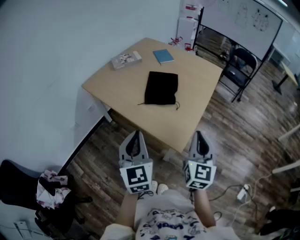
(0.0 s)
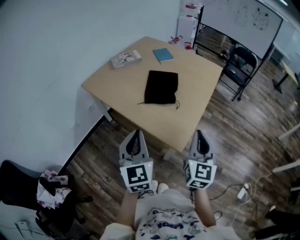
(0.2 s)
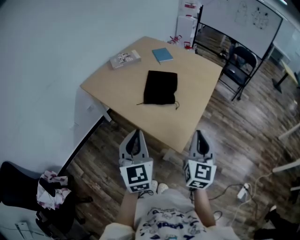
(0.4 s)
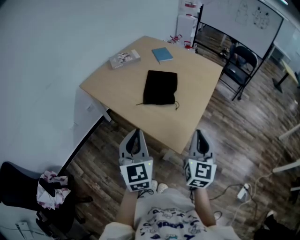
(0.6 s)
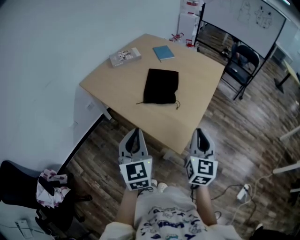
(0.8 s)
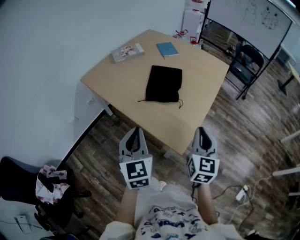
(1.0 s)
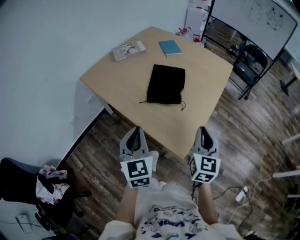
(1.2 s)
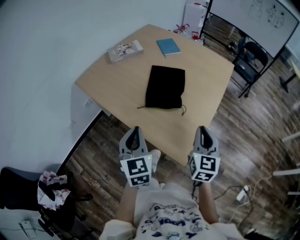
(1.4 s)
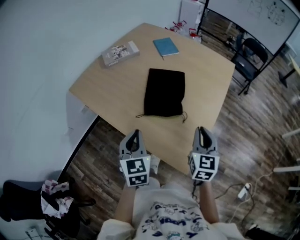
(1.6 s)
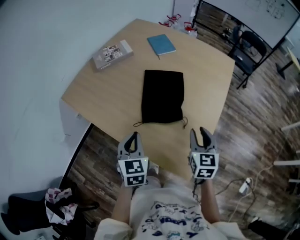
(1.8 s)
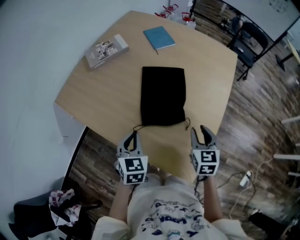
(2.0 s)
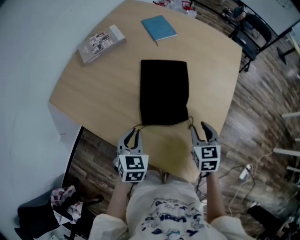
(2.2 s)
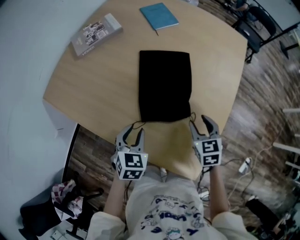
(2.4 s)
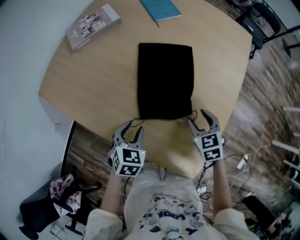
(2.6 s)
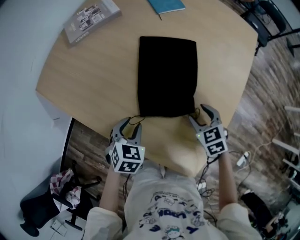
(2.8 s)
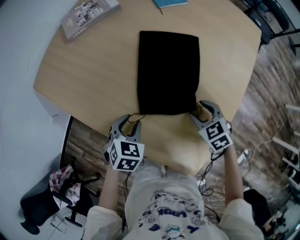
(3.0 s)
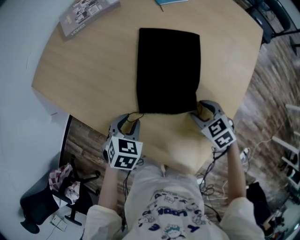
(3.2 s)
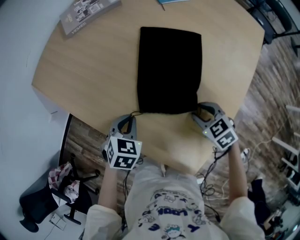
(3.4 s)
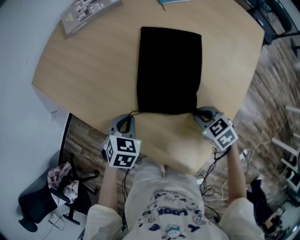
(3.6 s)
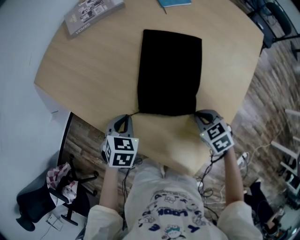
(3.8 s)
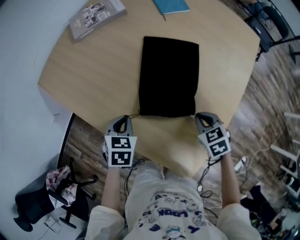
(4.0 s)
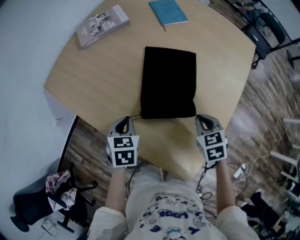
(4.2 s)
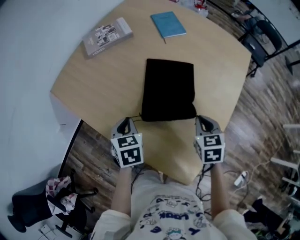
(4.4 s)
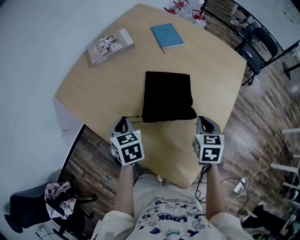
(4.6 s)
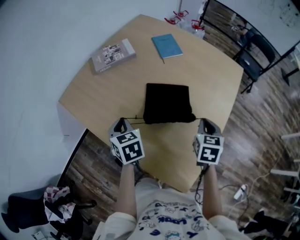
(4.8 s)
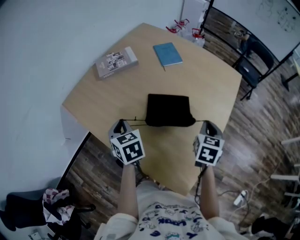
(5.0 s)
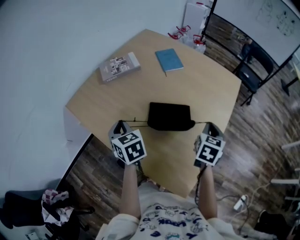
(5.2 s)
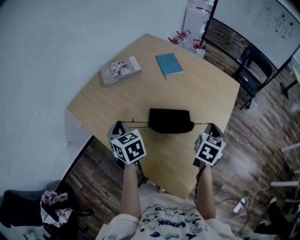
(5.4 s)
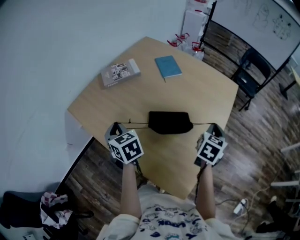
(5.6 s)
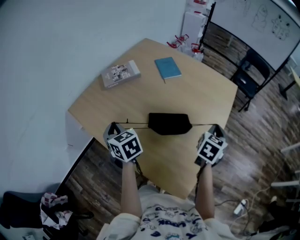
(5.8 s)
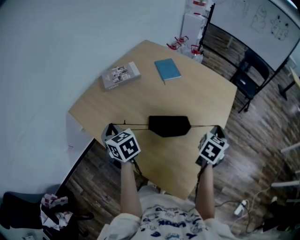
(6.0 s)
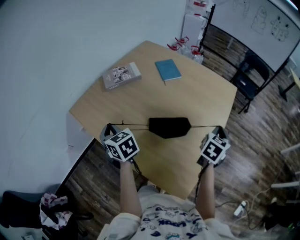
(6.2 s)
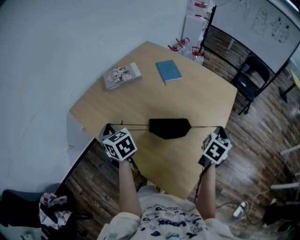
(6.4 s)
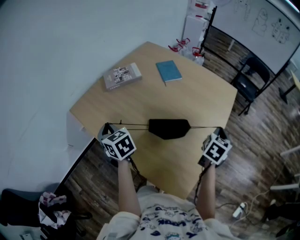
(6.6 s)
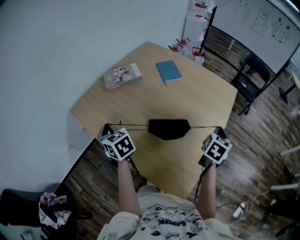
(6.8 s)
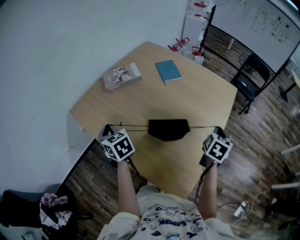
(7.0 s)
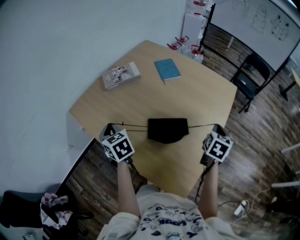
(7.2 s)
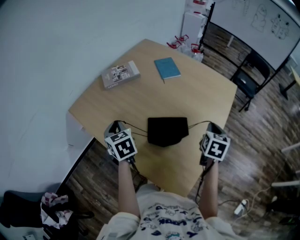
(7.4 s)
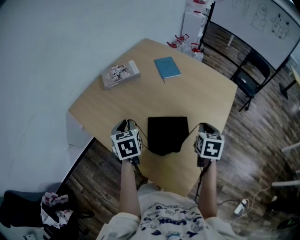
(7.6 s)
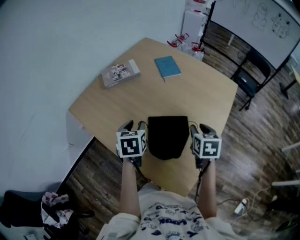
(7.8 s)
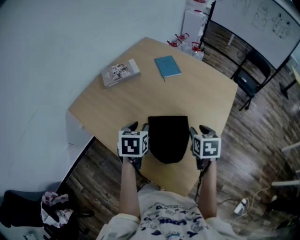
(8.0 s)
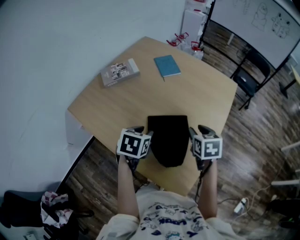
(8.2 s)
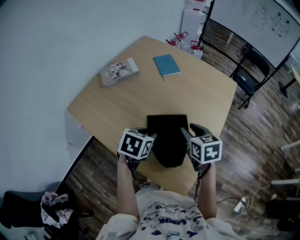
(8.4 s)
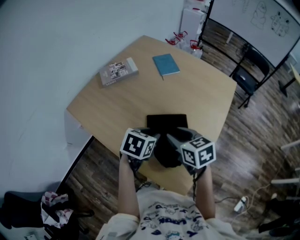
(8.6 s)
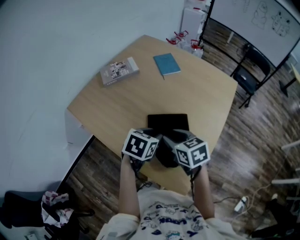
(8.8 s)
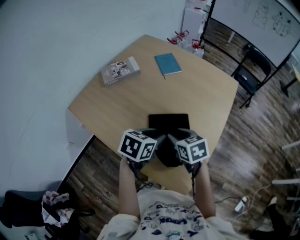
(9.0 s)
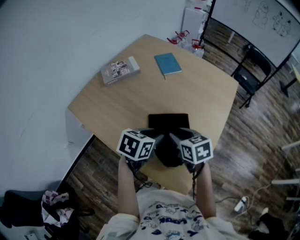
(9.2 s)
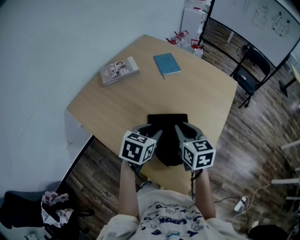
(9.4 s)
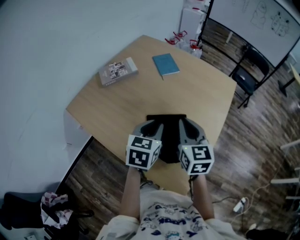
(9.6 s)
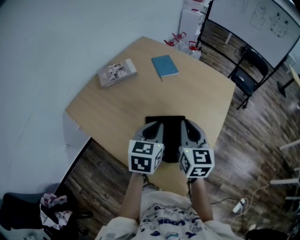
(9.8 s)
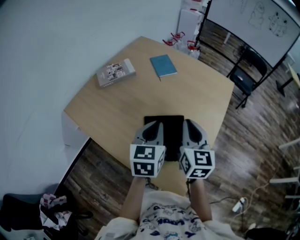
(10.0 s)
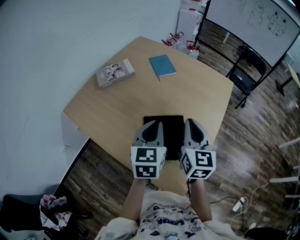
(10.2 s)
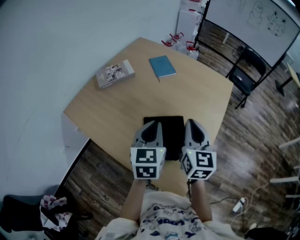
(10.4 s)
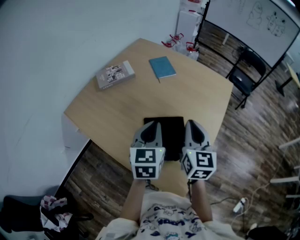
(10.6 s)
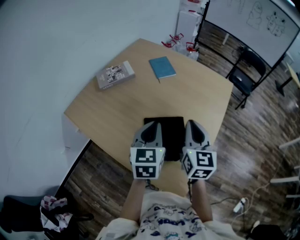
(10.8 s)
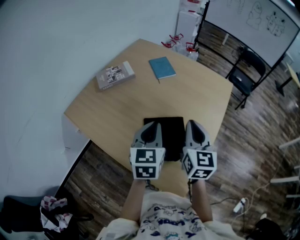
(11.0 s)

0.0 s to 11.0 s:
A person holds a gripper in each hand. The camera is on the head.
0.0 to 1.6 s: The grippers both shift forward and downward by some 20 cm.
1.6 to 3.2 s: The grippers both shift downward and forward by some 20 cm. The left gripper points its fingers approximately 40 degrees further downward, and opens its fingers. Meanwhile the right gripper points its fingers roughly 40 degrees further downward, and opens up.
3.2 to 4.8 s: The right gripper goes approximately 15 cm upward, rotates approximately 50 degrees, and closes. The left gripper shifts roughly 15 cm upward and forward, turns by approximately 40 degrees, and closes its fingers.
4.8 to 6.2 s: The right gripper heads to the right and upward, covering some 10 cm, and rotates roughly 30 degrees; the left gripper moves to the left and upward, roughly 10 cm, and swivels some 20 degrees.
6.2 to 7.8 s: The right gripper travels to the left and downward by about 10 cm, changes its angle by roughly 40 degrees, and opens up. The left gripper shifts approximately 15 cm to the right, turns by roughly 40 degrees, and opens.
7.8 to 9.4 s: The left gripper heads to the right, covering some 10 cm, and rotates about 30 degrees. Meanwhile the right gripper shifts some 10 cm to the left, and turns by approximately 20 degrees.
9.4 to 11.0 s: The two grippers go approximately 5 cm upward. The right gripper swivels some 20 degrees; the left gripper turns by approximately 30 degrees, and closes.

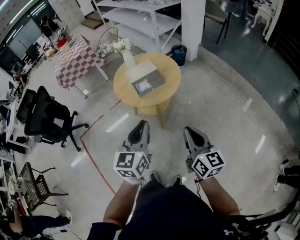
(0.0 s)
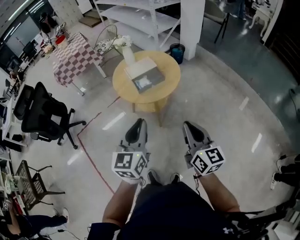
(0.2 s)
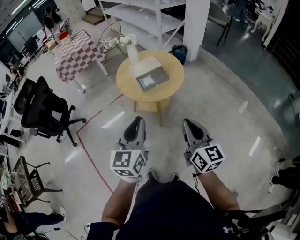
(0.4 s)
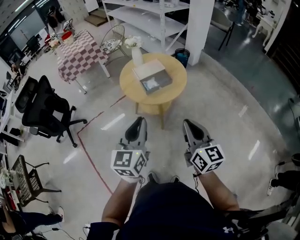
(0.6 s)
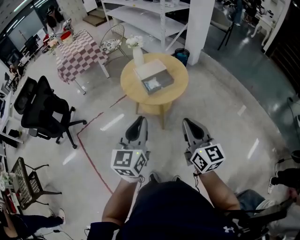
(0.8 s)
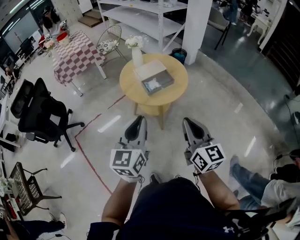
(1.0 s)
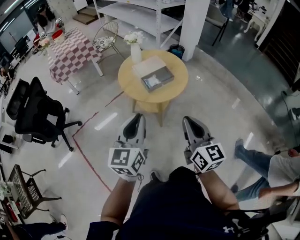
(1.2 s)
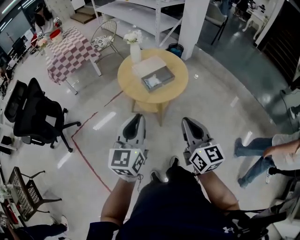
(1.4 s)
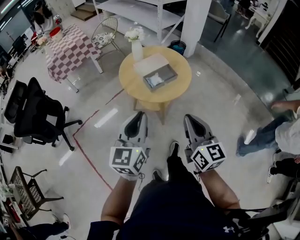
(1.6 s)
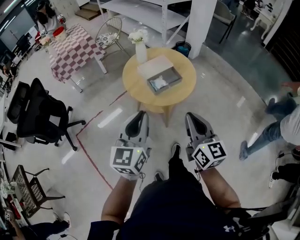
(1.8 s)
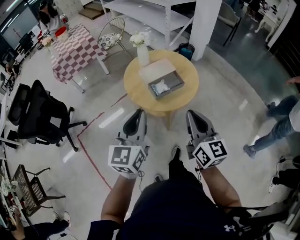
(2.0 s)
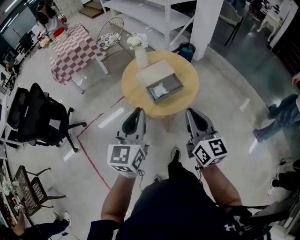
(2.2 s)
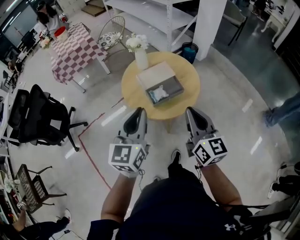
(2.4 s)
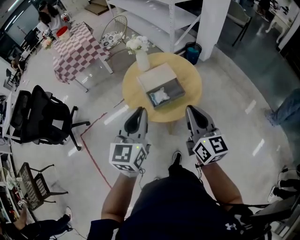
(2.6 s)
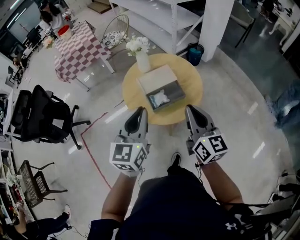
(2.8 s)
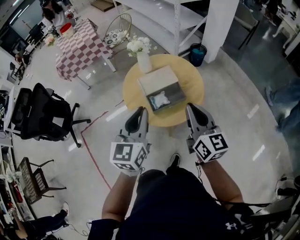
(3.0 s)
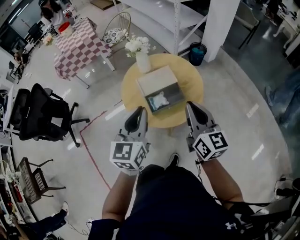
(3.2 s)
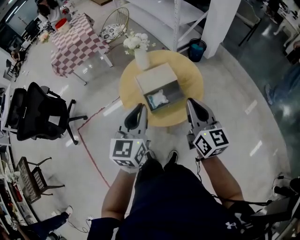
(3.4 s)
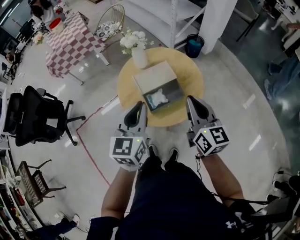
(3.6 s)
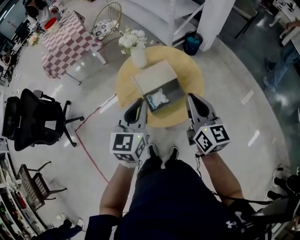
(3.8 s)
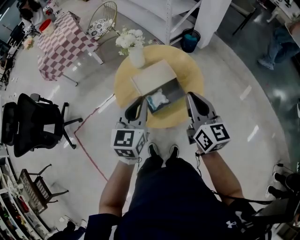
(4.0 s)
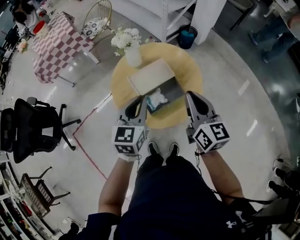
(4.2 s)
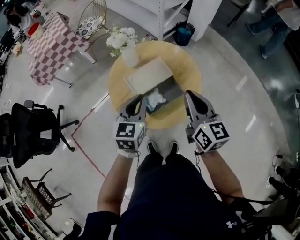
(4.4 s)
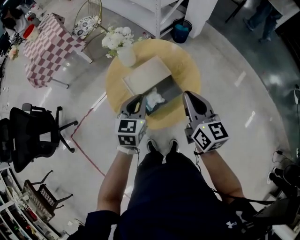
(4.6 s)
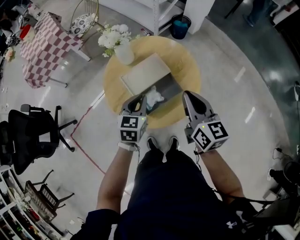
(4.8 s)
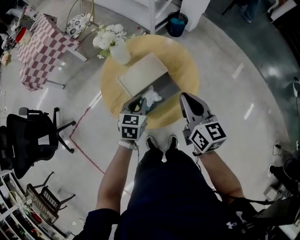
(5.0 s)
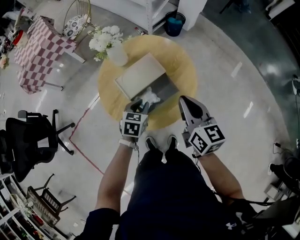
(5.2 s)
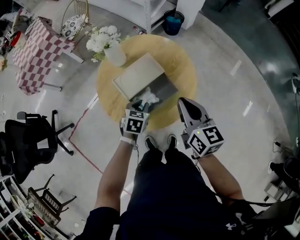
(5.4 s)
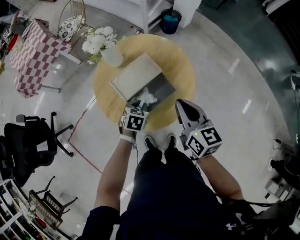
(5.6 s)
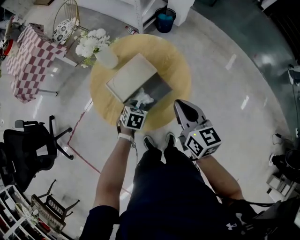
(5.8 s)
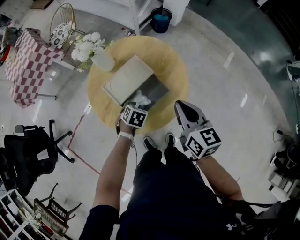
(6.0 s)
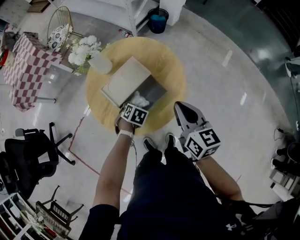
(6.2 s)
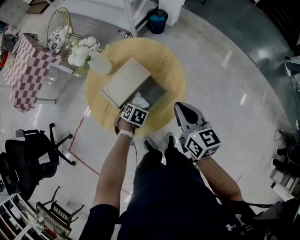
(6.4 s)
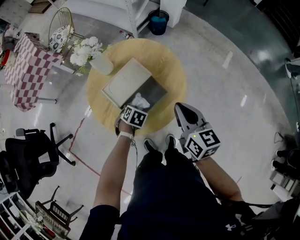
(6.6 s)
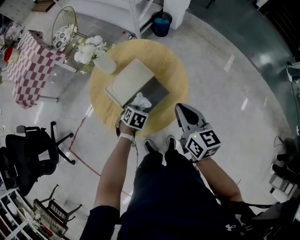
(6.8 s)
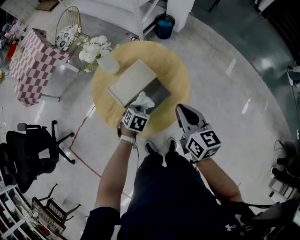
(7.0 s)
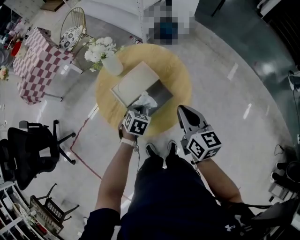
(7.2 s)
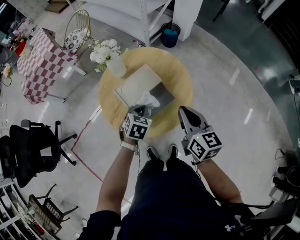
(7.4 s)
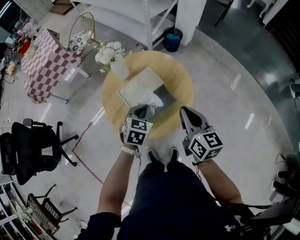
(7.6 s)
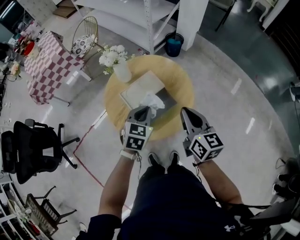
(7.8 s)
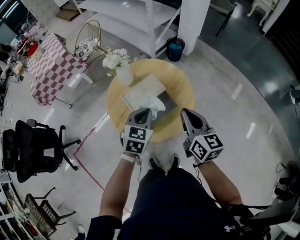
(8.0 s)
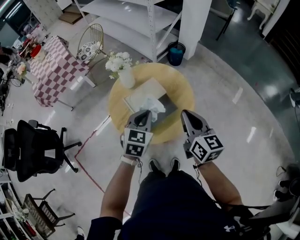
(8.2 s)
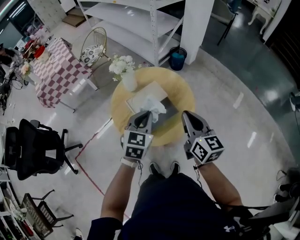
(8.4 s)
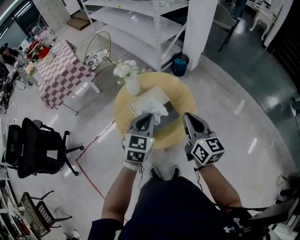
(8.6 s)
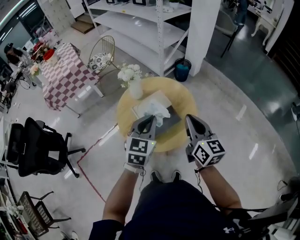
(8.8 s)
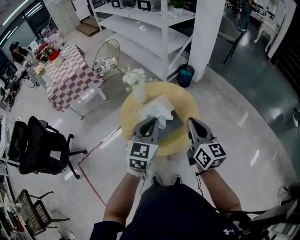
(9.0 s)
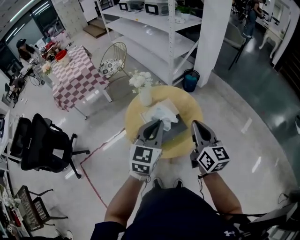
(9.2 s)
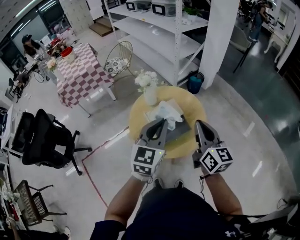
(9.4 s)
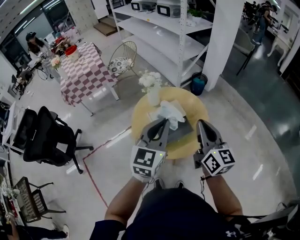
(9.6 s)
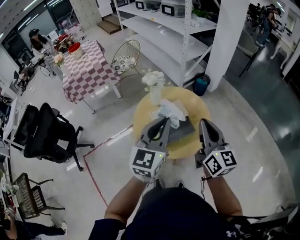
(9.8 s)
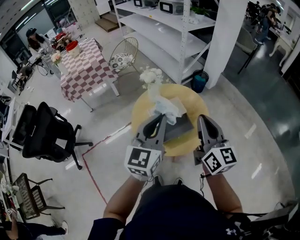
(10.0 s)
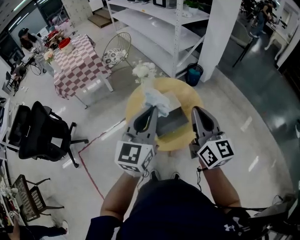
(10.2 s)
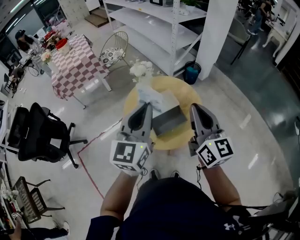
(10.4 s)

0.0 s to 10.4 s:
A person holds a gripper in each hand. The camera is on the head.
0.0 to 1.4 s: The grippers both shift to the left by approximately 15 cm.
1.4 to 3.0 s: The two grippers go about 25 cm forward.
3.0 to 4.4 s: The left gripper moves forward and downward, approximately 20 cm. Meanwhile the right gripper travels forward by roughly 15 cm.
4.4 to 6.0 s: The right gripper goes approximately 10 cm downward. The left gripper shifts approximately 25 cm downward, and angles its fingers downward, by some 50 degrees.
6.0 to 7.4 s: The left gripper goes some 10 cm upward.
7.4 to 9.0 s: The left gripper moves upward, about 25 cm, and tips its fingers upward by about 40 degrees. The right gripper shifts about 10 cm upward.
9.0 to 10.4 s: Both grippers travel together upward, roughly 10 cm. The left gripper changes its angle by roughly 20 degrees.

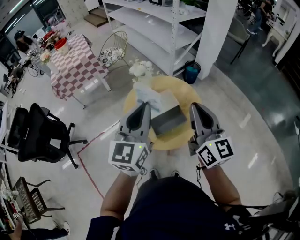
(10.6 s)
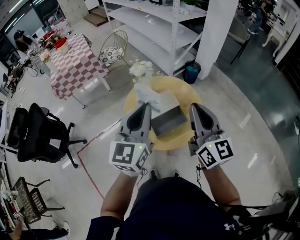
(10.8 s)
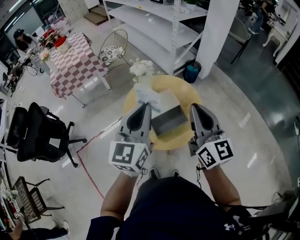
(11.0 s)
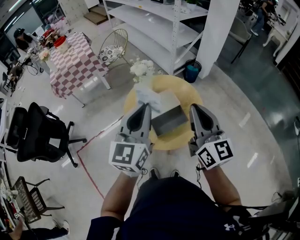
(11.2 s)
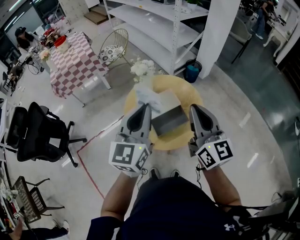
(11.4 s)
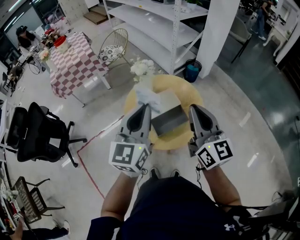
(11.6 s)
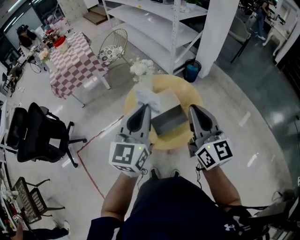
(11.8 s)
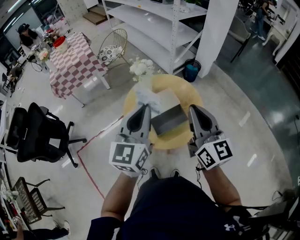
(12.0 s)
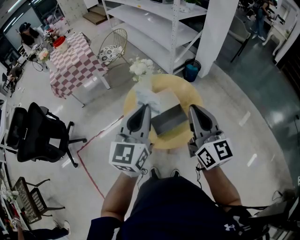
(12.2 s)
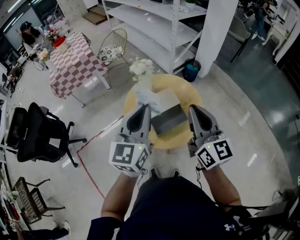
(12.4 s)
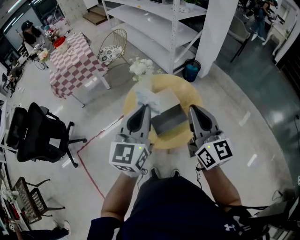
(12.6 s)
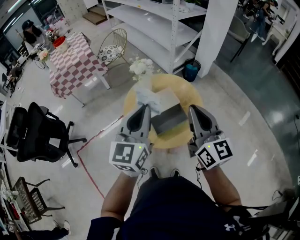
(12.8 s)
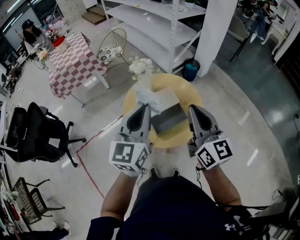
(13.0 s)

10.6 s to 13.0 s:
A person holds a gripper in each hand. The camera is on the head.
10.6 to 11.8 s: The grippers make only small movements.
11.8 to 13.0 s: Both grippers stay put.
